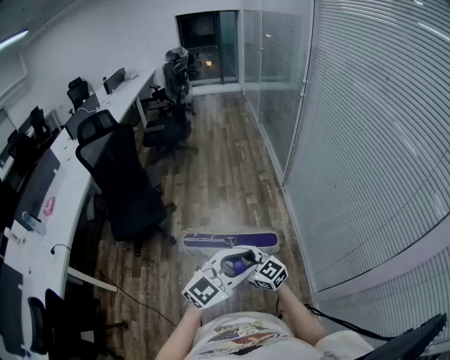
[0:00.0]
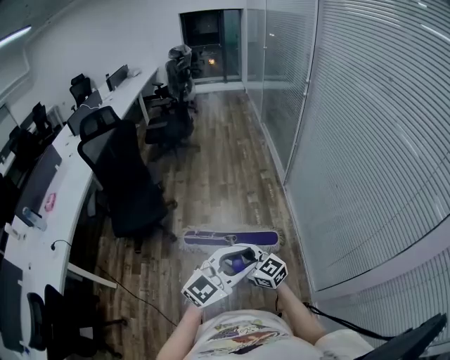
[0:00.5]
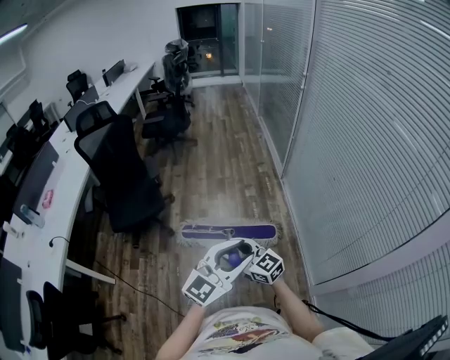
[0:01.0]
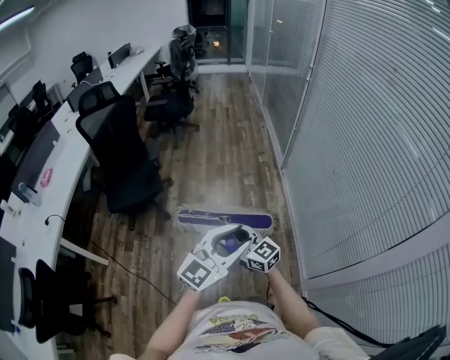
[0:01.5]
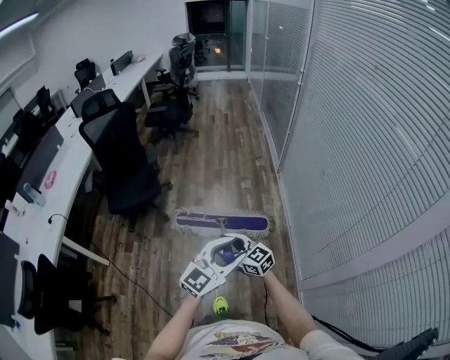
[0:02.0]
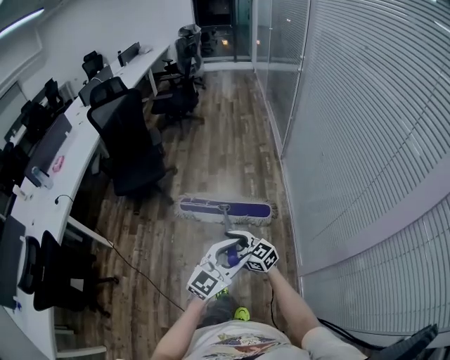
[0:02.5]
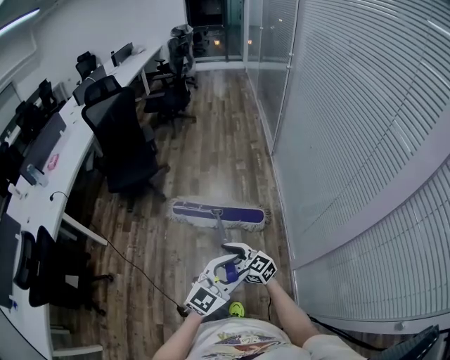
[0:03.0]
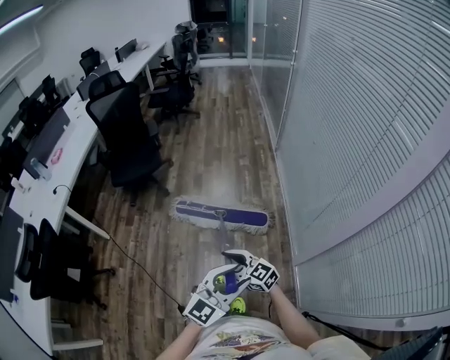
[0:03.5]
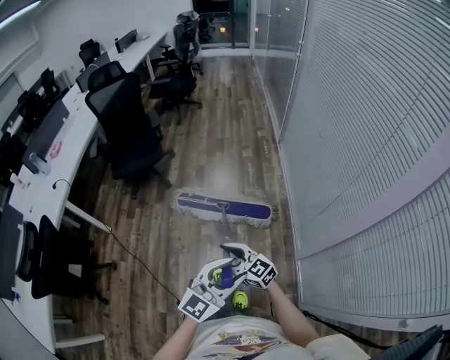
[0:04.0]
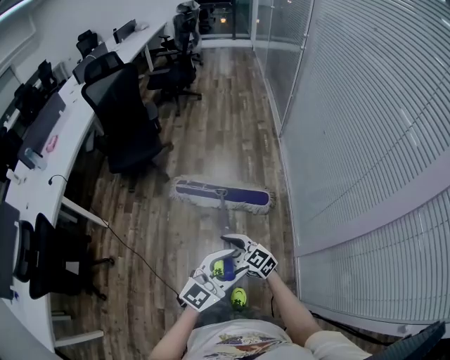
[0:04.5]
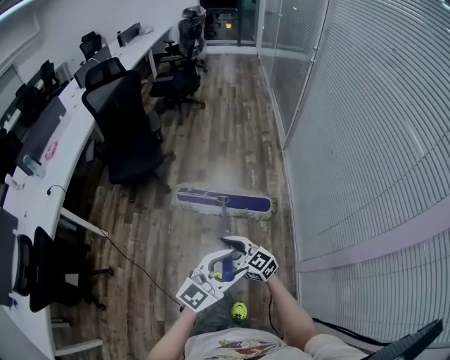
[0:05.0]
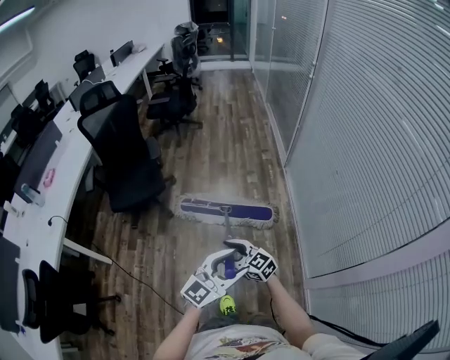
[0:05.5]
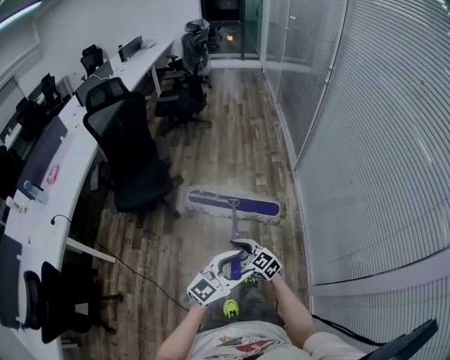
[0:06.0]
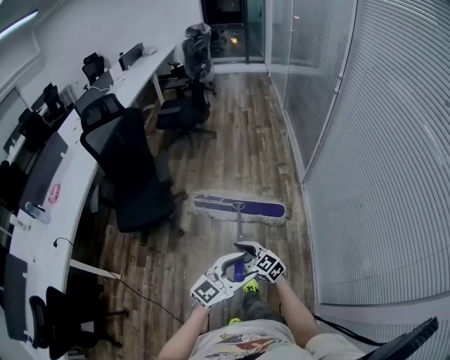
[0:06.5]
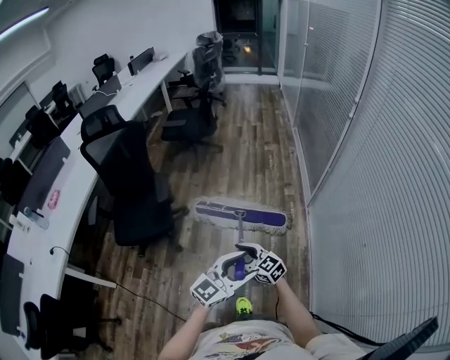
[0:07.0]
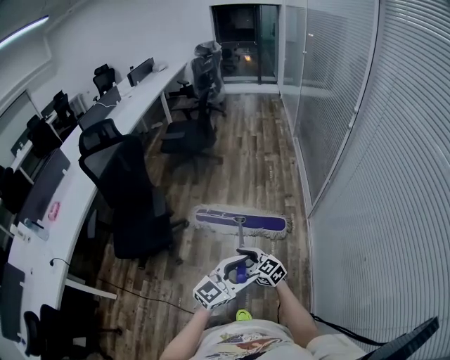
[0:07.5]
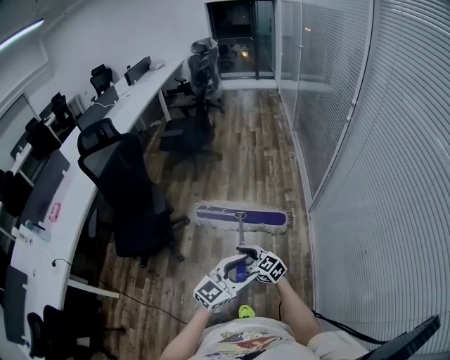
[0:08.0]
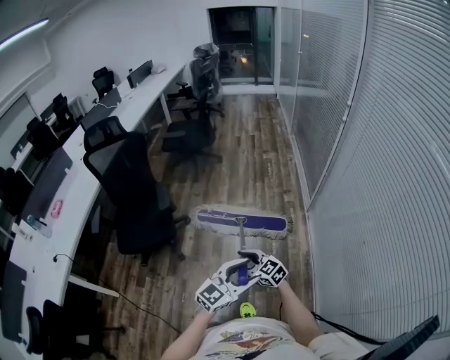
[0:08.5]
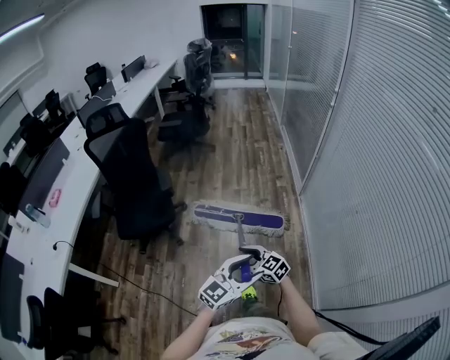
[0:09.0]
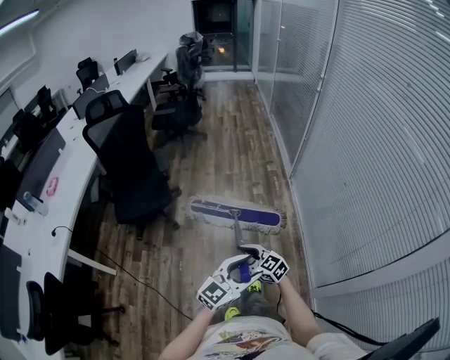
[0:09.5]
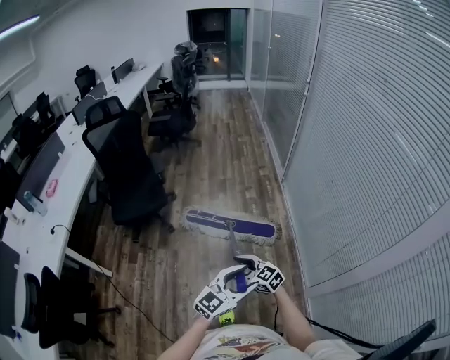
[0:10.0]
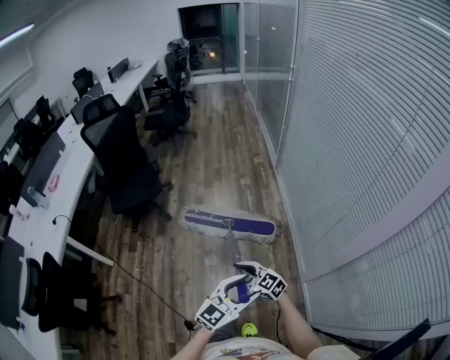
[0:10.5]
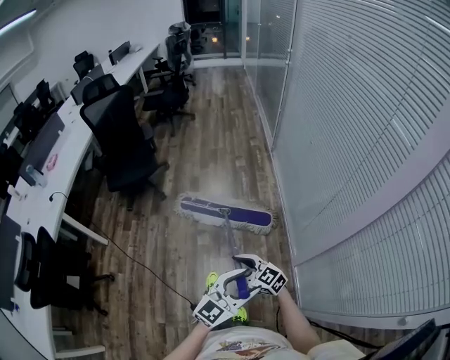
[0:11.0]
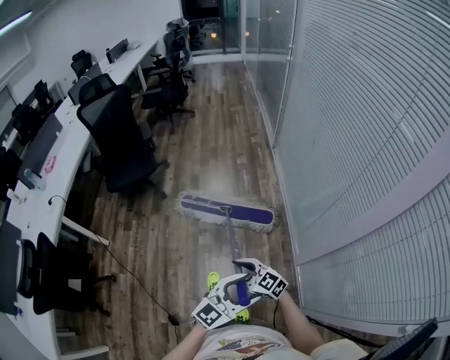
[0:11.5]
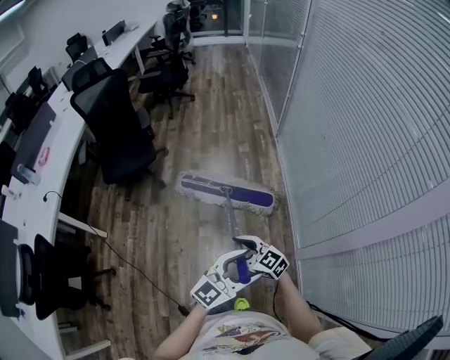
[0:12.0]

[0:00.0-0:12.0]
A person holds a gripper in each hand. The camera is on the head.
0:00.0 to 0:02.0: Both grippers travel together backward and to the right, approximately 10 cm.
0:02.0 to 0:04.0: The two grippers go approximately 25 cm backward.
0:04.0 to 0:06.0: Both grippers travel together forward, about 35 cm.
0:06.0 to 0:08.0: Both grippers move forward, approximately 35 cm.
0:08.0 to 0:10.0: The pair of grippers is taken backward, some 50 cm.

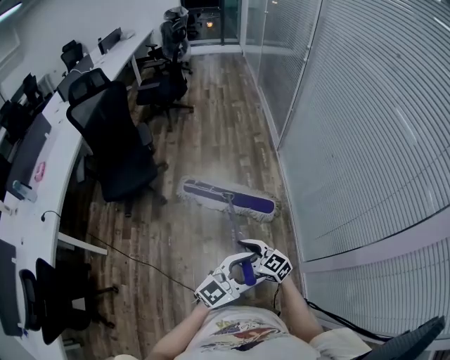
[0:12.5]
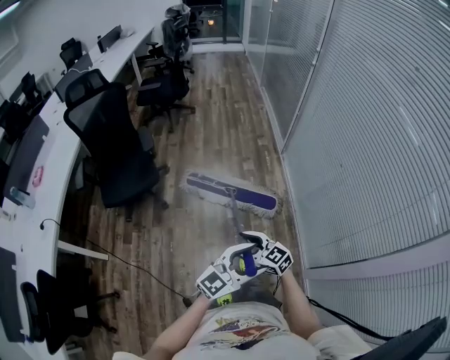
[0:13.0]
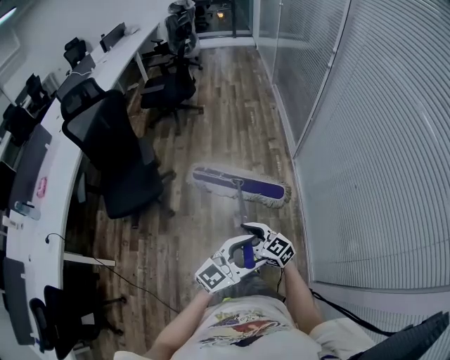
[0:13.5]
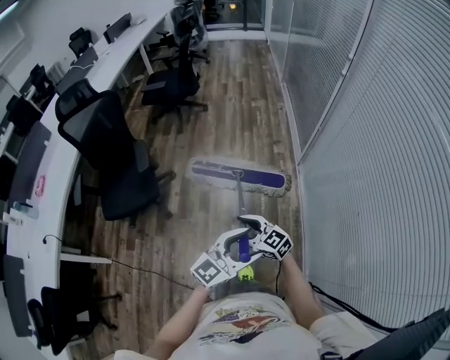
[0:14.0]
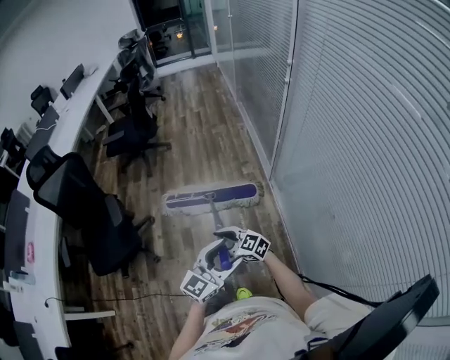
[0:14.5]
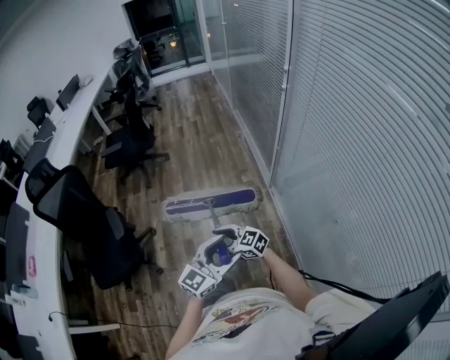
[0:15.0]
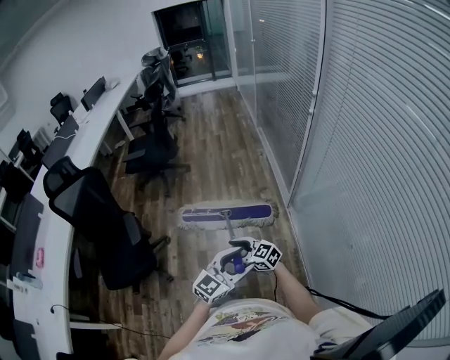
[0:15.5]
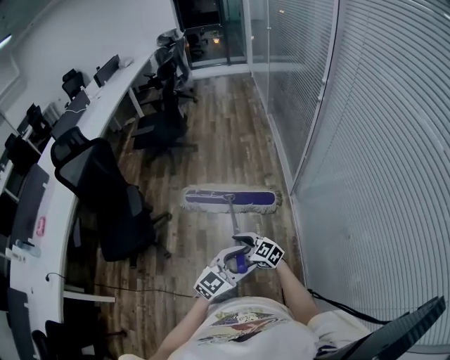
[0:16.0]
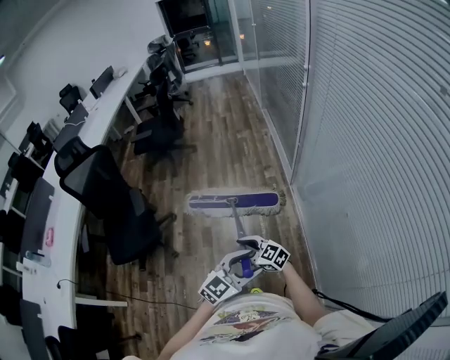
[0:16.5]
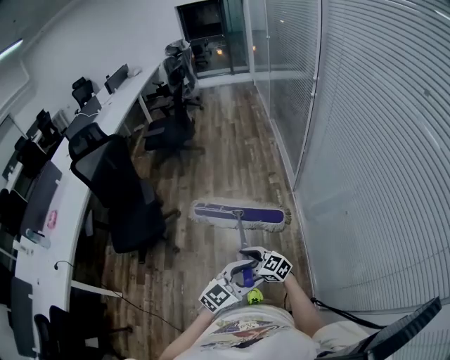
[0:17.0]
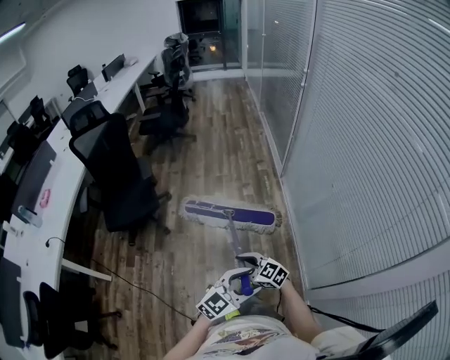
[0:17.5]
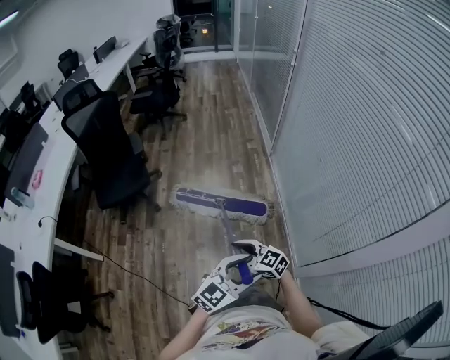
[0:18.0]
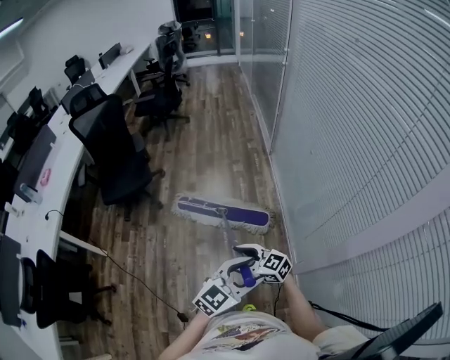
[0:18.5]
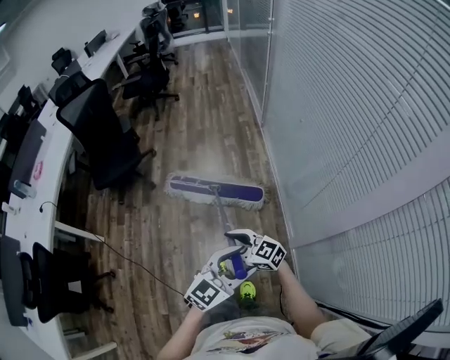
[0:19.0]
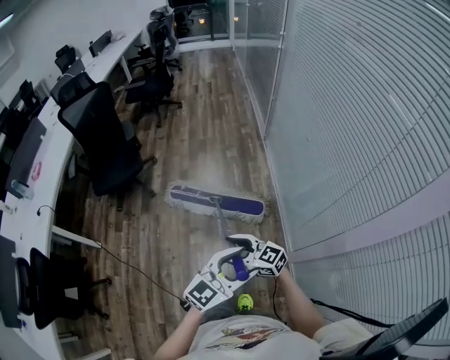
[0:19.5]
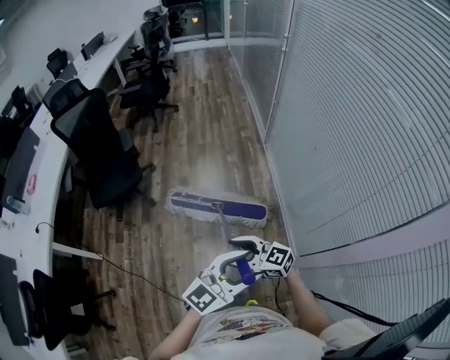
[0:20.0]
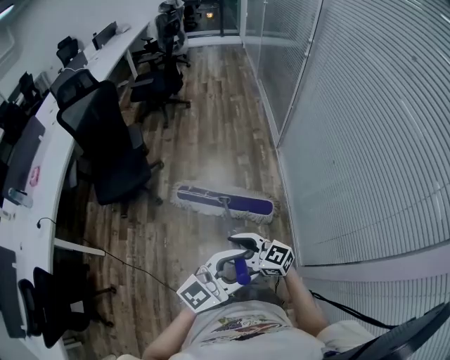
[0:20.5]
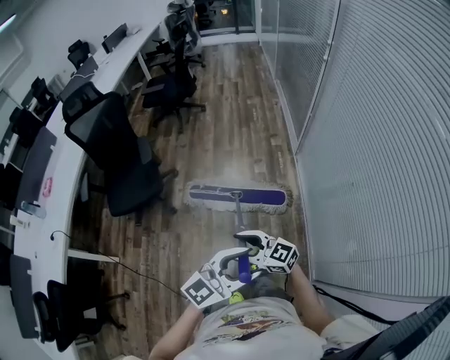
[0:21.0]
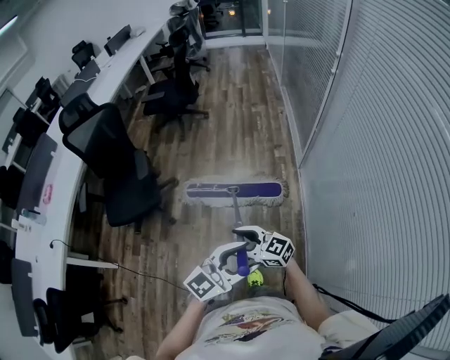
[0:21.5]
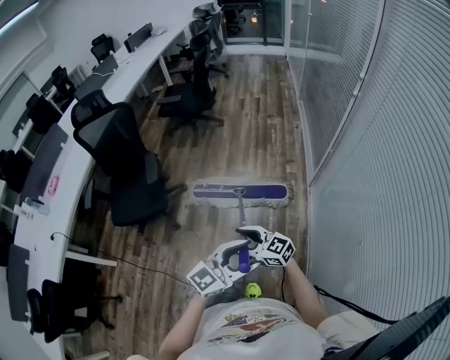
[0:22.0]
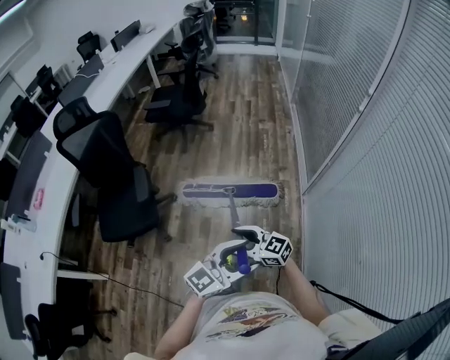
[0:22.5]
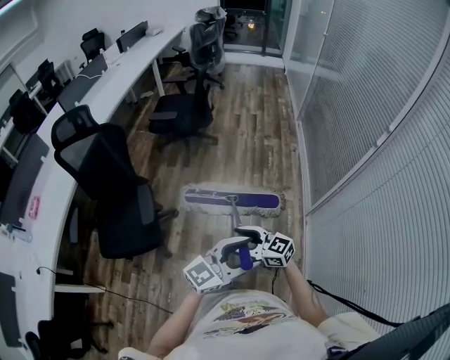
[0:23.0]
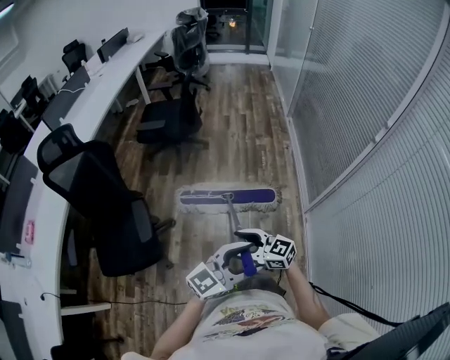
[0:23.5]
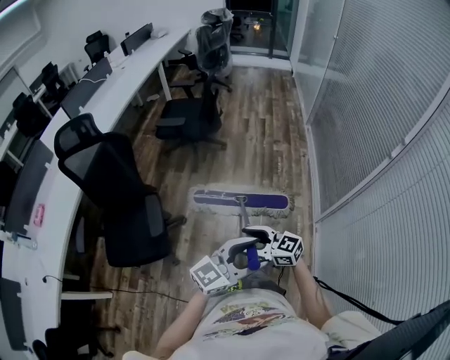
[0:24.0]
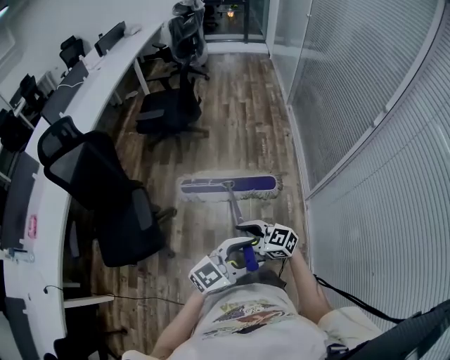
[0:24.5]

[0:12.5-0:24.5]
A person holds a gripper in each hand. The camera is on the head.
0:12.5 to 0:14.5: Both grippers are carried forward, some 50 cm.
0:14.5 to 0:16.5: The right gripper shifts by about 10 cm, while the left gripper shifts by some 10 cm.
0:16.5 to 0:18.5: The pair of grippers is taken roughly 50 cm.
0:18.5 to 0:20.5: The right gripper shifts by about 20 cm, while the left gripper moves some 20 cm.
0:20.5 to 0:22.5: The two grippers travel together, some 50 cm.
0:22.5 to 0:24.5: The right gripper ends up roughly 20 cm from where it was. The left gripper moves some 20 cm.

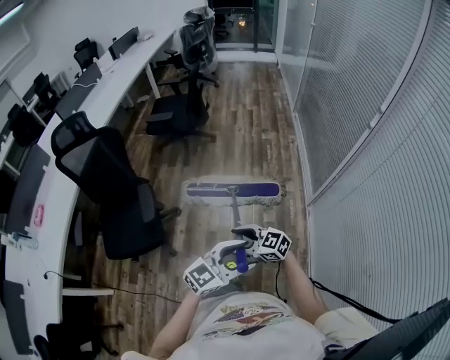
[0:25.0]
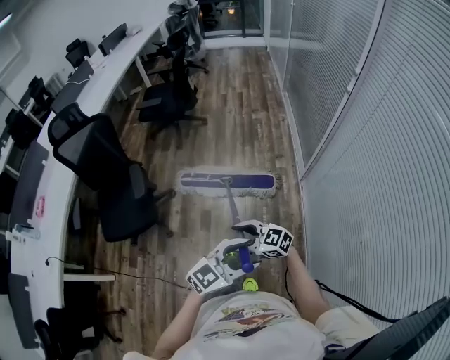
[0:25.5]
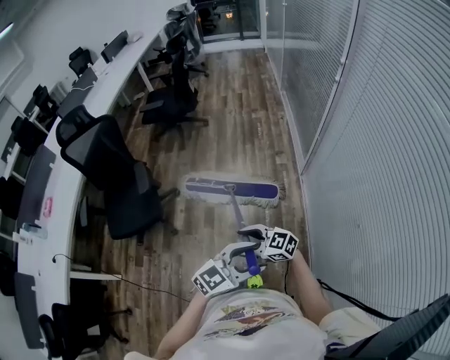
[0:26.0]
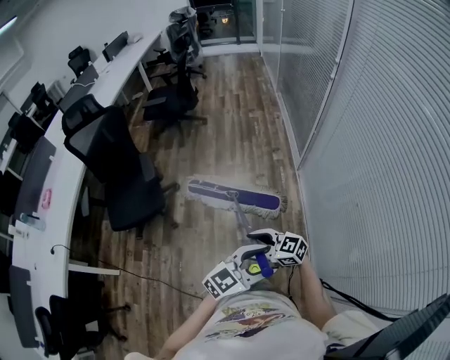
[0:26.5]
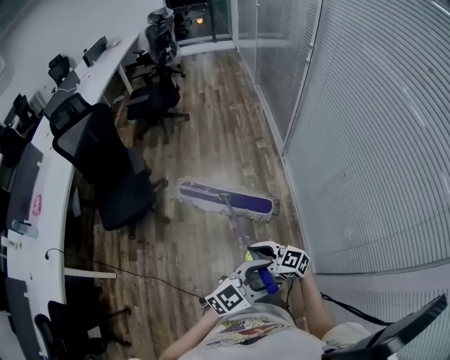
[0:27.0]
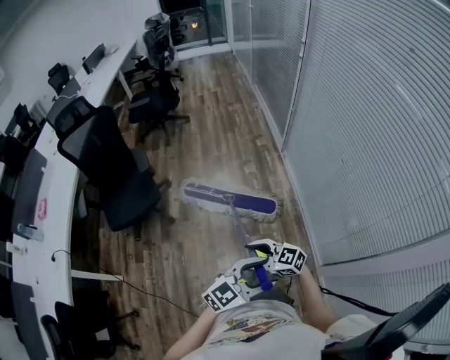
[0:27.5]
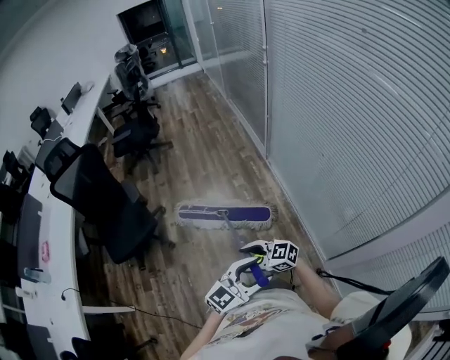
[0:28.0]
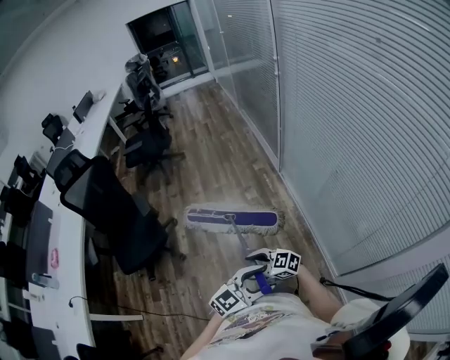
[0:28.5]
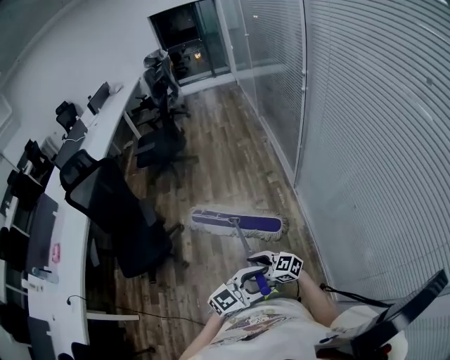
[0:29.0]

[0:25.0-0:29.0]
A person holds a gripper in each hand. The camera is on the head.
0:25.0 to 0:27.0: The two grippers travel together, roughly 50 cm.
0:27.0 to 0:29.0: The right gripper changes place by approximately 15 cm. Meanwhile the left gripper changes place by some 15 cm.
